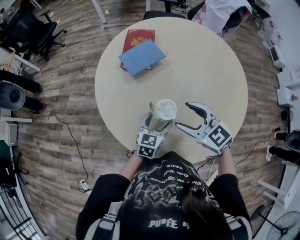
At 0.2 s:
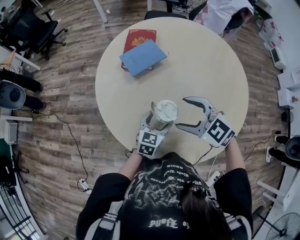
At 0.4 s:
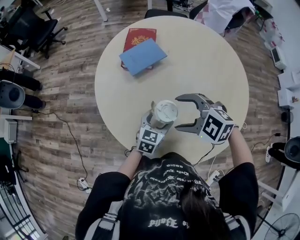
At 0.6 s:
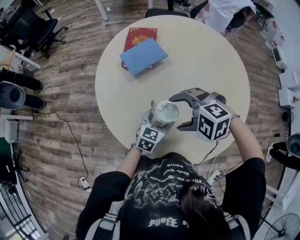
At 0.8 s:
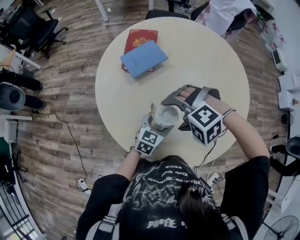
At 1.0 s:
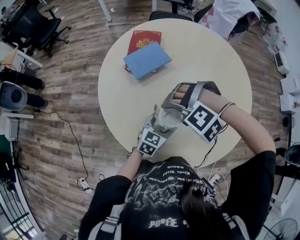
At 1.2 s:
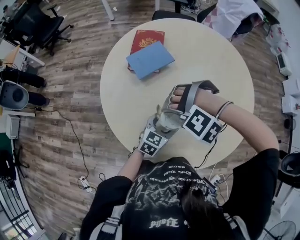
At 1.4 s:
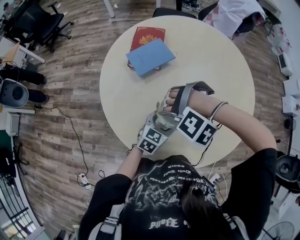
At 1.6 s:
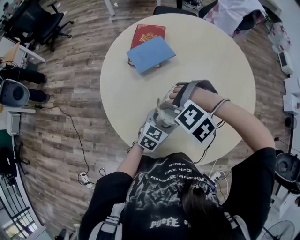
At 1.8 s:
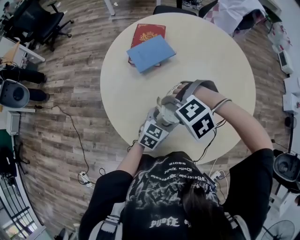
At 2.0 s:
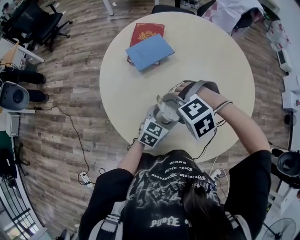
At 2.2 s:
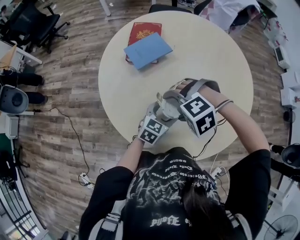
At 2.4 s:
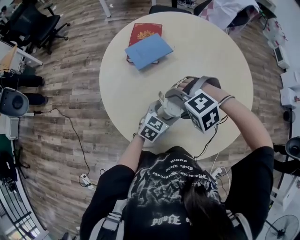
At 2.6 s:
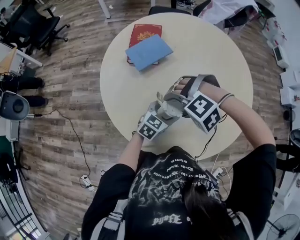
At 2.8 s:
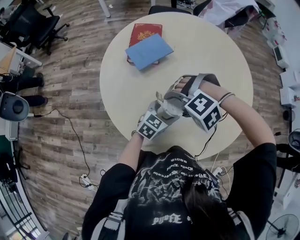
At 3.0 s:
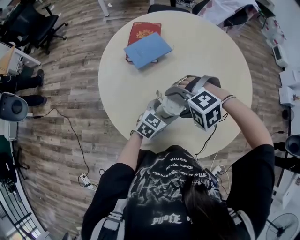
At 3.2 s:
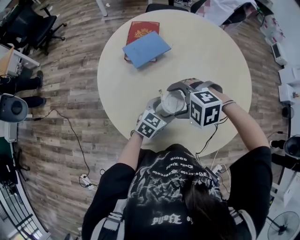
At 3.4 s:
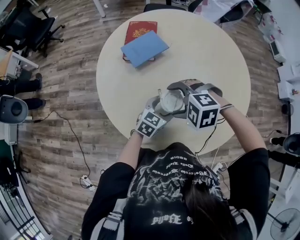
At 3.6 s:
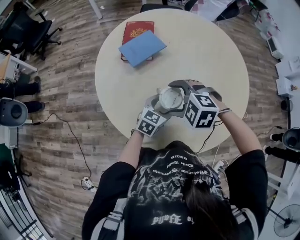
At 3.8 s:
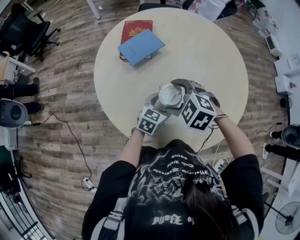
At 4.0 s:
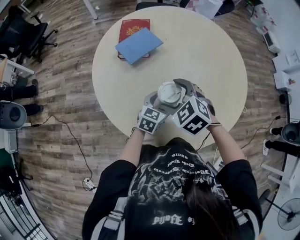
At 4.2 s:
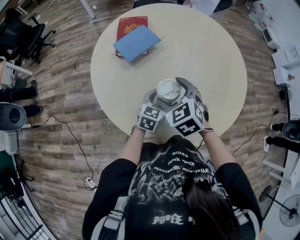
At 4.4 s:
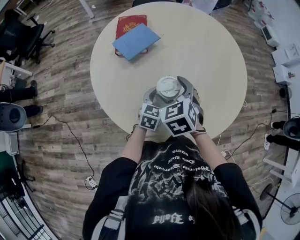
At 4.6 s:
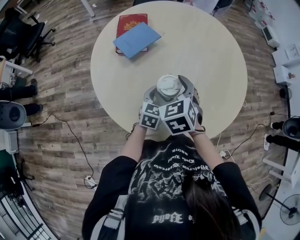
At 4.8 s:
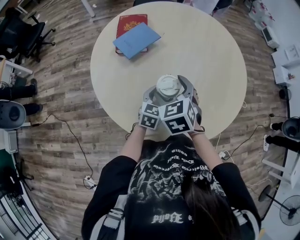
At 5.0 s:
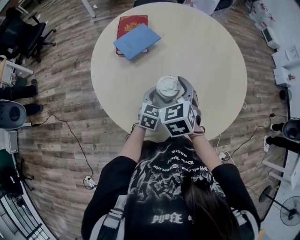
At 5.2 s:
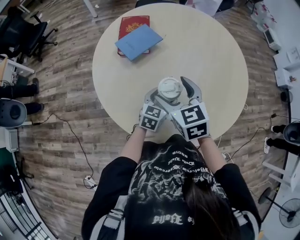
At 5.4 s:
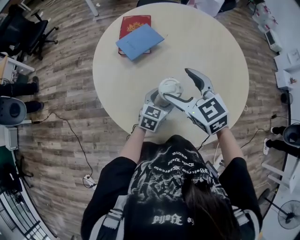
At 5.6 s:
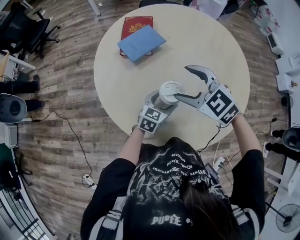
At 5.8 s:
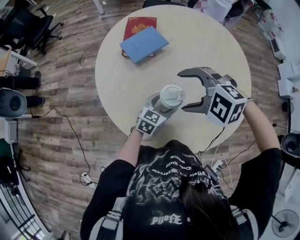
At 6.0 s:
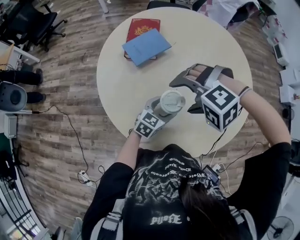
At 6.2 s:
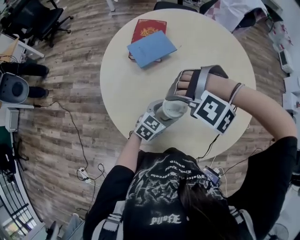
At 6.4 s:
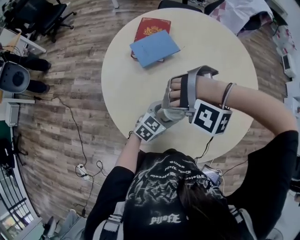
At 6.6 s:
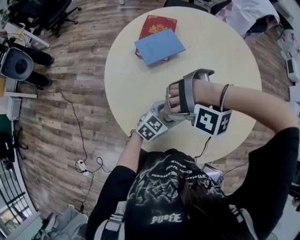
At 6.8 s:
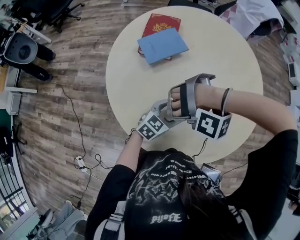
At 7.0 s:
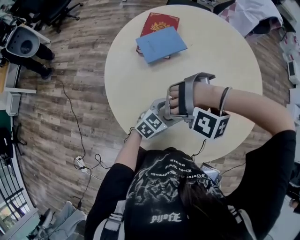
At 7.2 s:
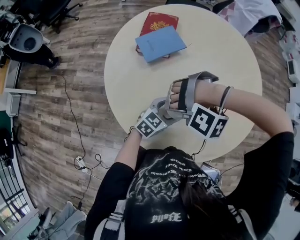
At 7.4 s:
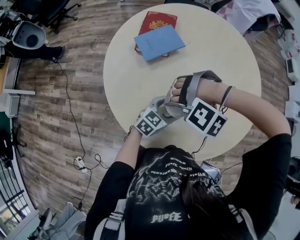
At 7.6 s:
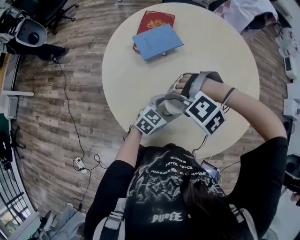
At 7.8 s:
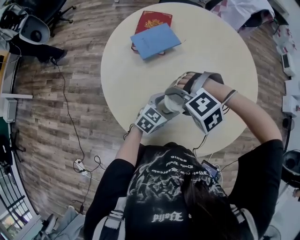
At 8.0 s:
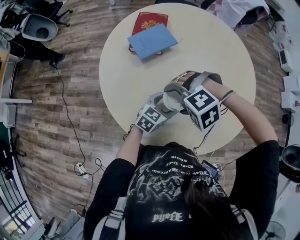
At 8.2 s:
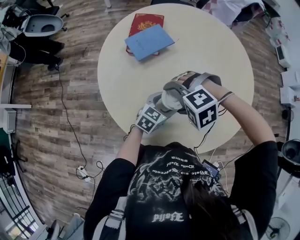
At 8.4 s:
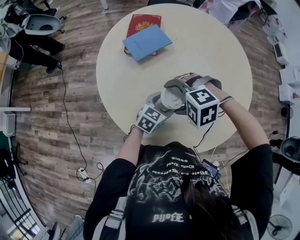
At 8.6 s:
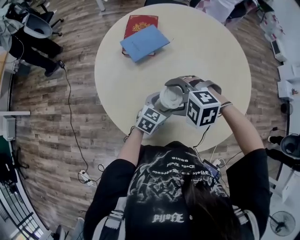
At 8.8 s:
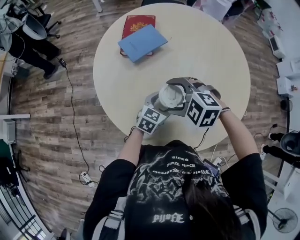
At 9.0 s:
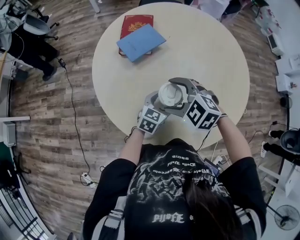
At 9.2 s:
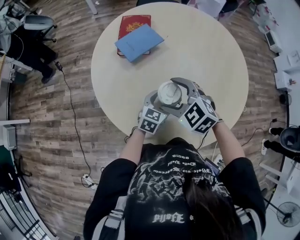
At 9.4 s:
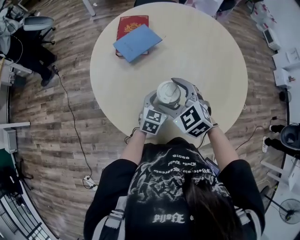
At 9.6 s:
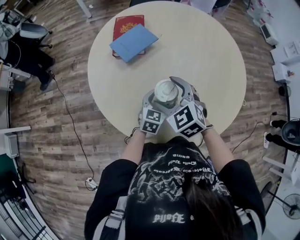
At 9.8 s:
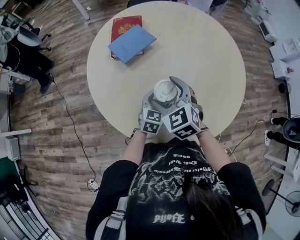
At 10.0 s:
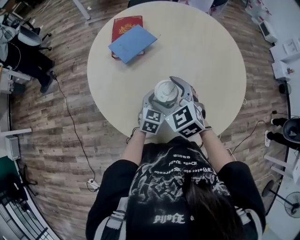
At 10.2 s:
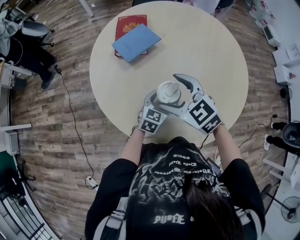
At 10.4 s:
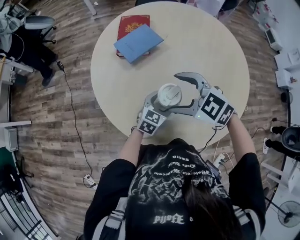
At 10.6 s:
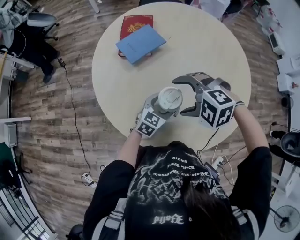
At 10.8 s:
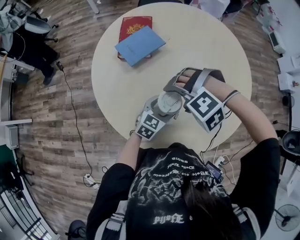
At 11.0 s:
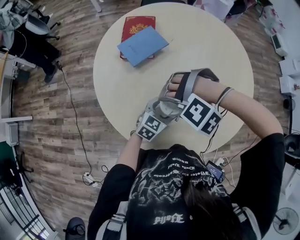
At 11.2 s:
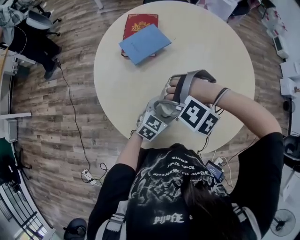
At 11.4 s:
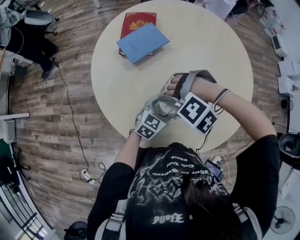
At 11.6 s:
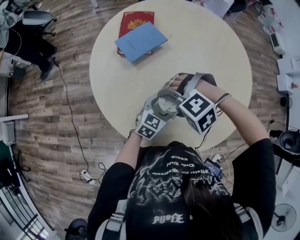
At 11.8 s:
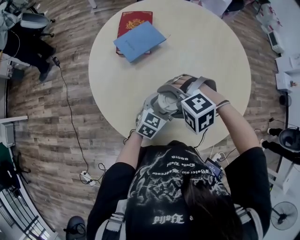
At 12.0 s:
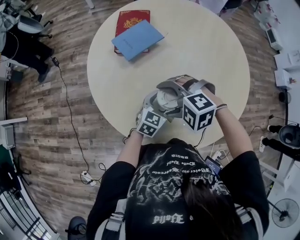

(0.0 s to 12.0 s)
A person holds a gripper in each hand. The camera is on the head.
0.0 s - 1.6 s: The right gripper moves about 5 cm, and tips its fingers downward by roughly 50 degrees.
1.6 s - 3.0 s: The right gripper rotates about 20 degrees.
3.0 s - 4.4 s: The right gripper twists some 80 degrees clockwise, seen from behind.
4.4 s - 6.0 s: The right gripper rolls counterclockwise, seen from behind, by some 80 degrees.
6.0 s - 7.6 s: The right gripper shifts about 5 cm downward, and changes its angle by about 20 degrees.
7.6 s - 9.0 s: The right gripper rotates around the line of its fingers by about 60 degrees, clockwise from behind.
10.4 s - 12.0 s: The right gripper is displaced downward by approximately 5 cm, and turns by approximately 40 degrees.

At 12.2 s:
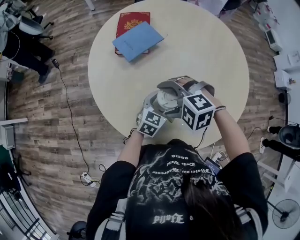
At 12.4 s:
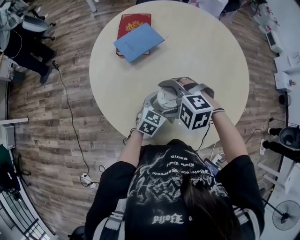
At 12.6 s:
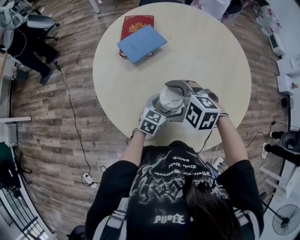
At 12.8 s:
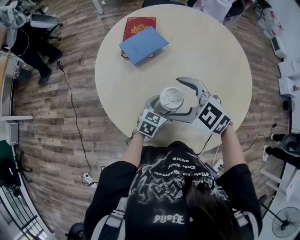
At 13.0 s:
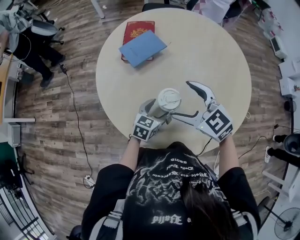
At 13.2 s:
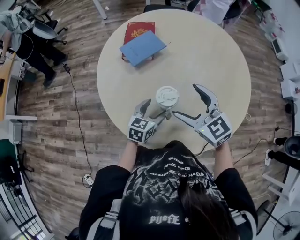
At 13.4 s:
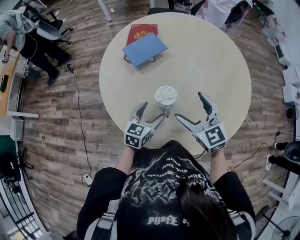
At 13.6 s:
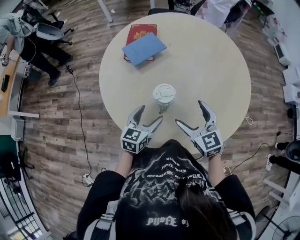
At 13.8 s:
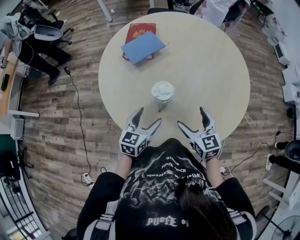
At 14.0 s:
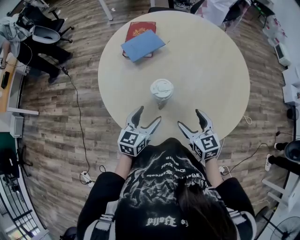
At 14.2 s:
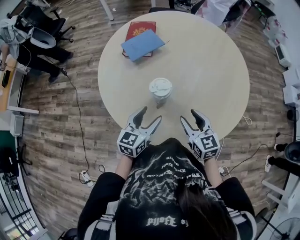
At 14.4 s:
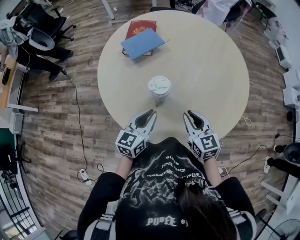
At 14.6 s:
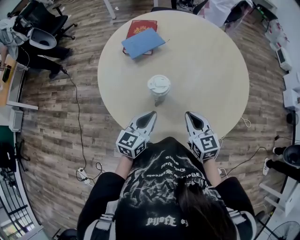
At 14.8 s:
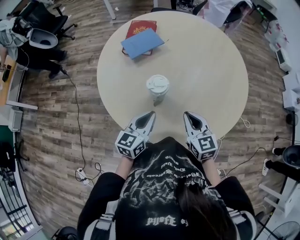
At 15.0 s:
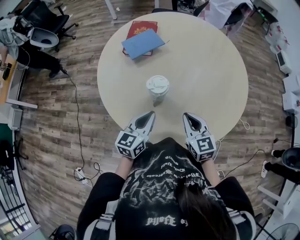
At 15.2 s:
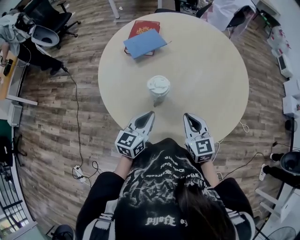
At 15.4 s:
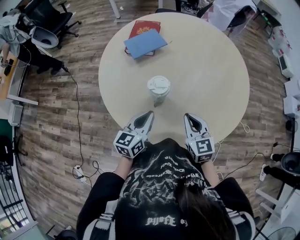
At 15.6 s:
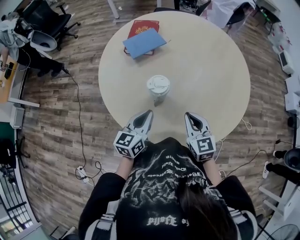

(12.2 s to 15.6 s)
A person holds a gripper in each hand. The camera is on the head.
12.2 s - 13.8 s: The left gripper heads backward, upward and to the left, covering some 15 cm; the right gripper moves to the right and backward, some 15 cm, and angles its fingers upward, by approximately 30 degrees.
13.8 s - 15.6 s: The left gripper closes up; the right gripper closes up.

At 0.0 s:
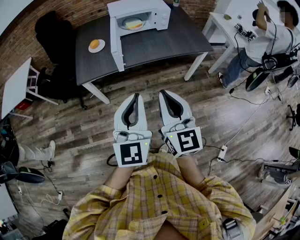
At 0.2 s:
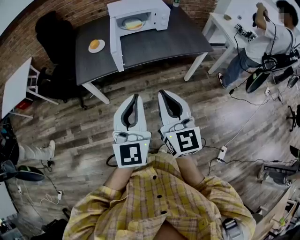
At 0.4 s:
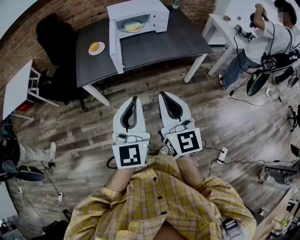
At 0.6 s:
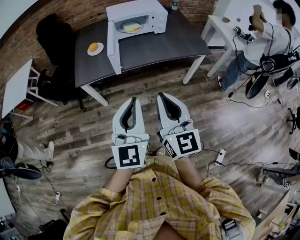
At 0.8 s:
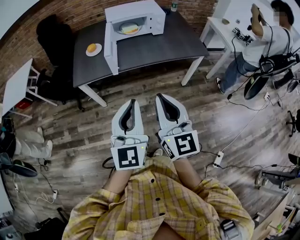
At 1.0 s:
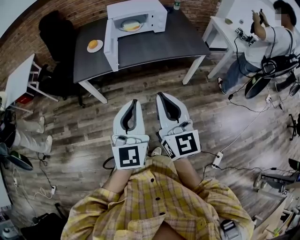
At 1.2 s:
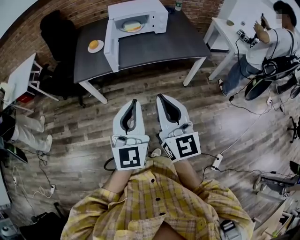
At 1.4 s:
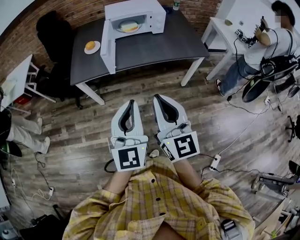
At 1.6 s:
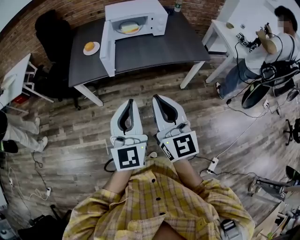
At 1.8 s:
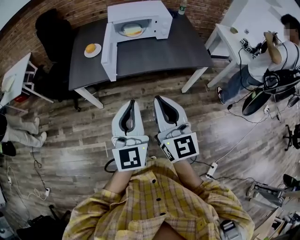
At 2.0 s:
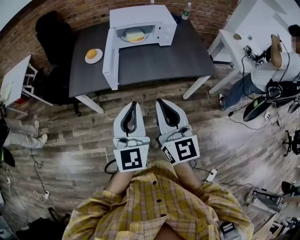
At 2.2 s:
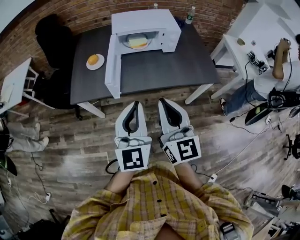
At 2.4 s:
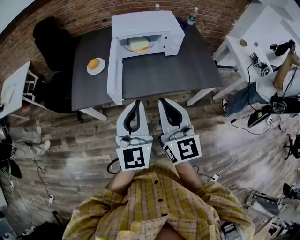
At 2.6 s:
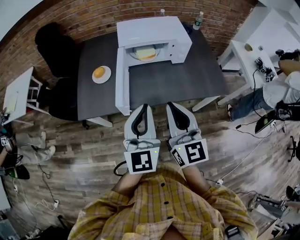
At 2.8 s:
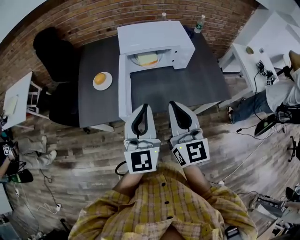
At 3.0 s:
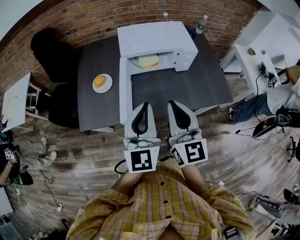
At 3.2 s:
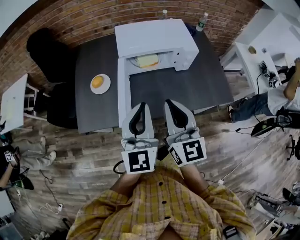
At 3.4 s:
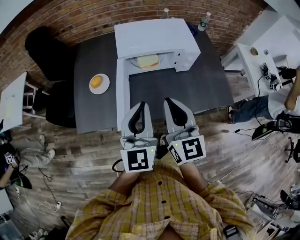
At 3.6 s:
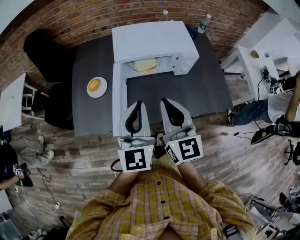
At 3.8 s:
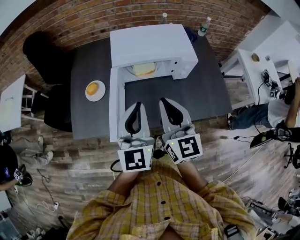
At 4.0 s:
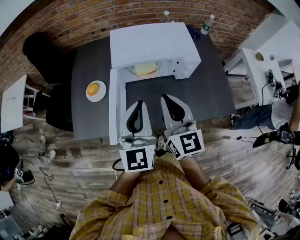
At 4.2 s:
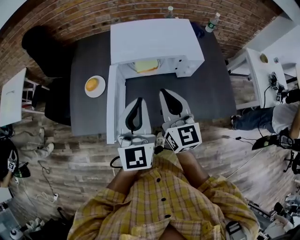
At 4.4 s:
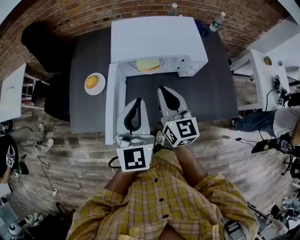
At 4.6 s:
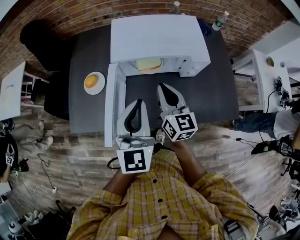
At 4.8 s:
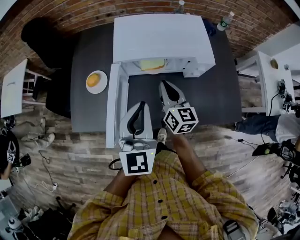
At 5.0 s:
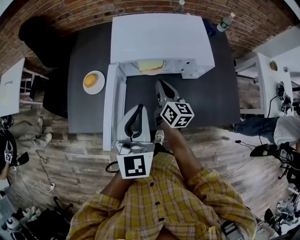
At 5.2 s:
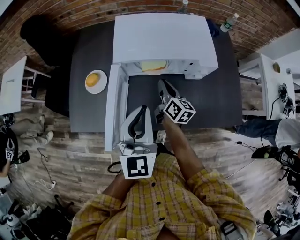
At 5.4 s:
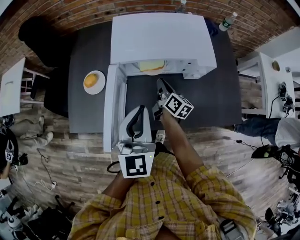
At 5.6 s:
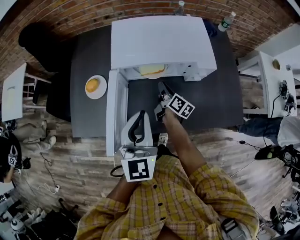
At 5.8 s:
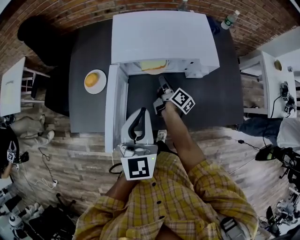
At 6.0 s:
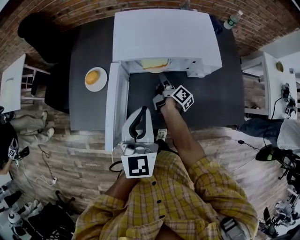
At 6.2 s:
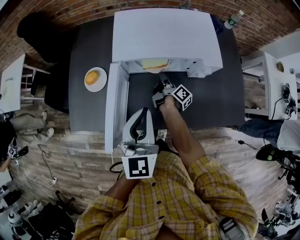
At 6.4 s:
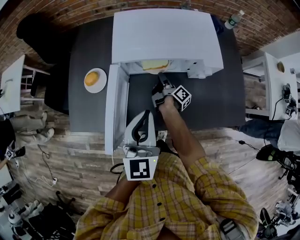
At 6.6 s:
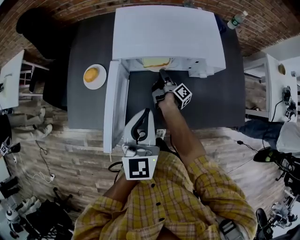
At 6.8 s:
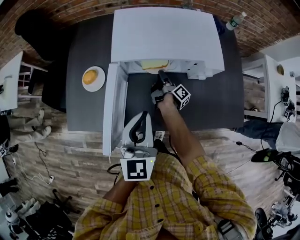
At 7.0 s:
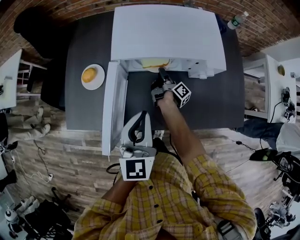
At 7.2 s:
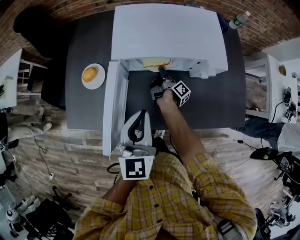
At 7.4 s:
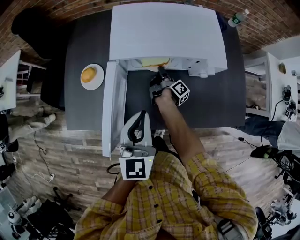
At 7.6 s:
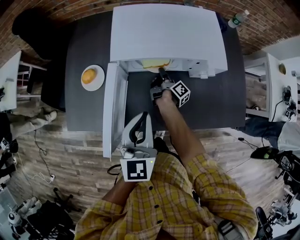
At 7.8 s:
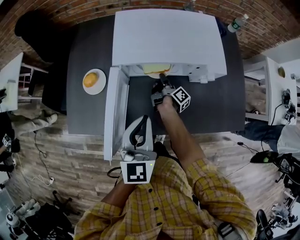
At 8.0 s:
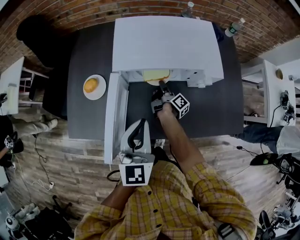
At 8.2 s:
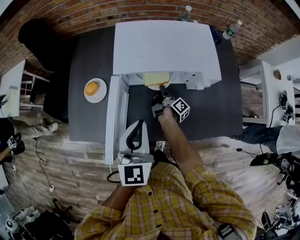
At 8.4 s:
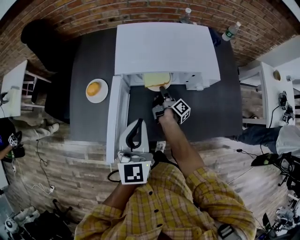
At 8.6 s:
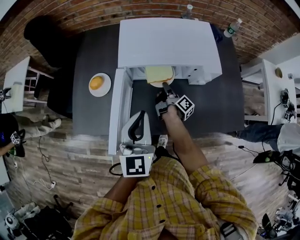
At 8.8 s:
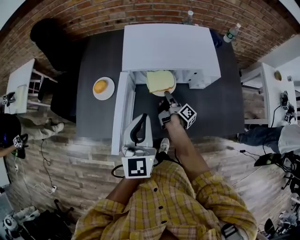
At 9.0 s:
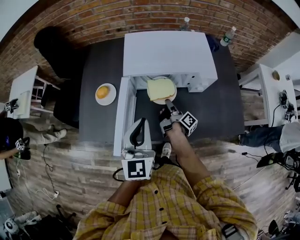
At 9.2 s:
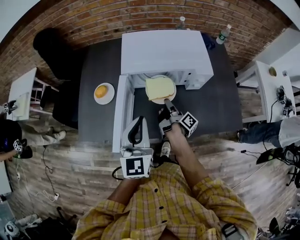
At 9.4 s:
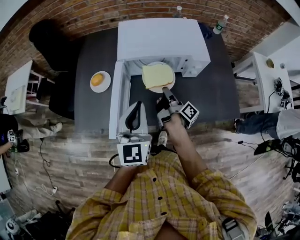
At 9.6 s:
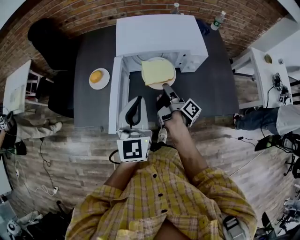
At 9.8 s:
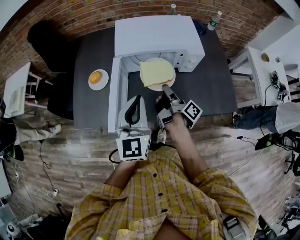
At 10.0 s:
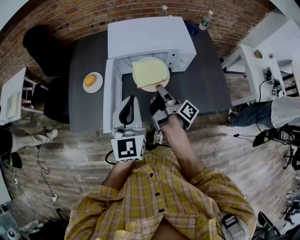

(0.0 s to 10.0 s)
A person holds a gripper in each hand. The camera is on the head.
0.0 s - 1.4 s: Both grippers move to the right, roughly 5 cm.
1.4 s - 2.8 s: The two grippers go some 35 cm forward.
2.8 s - 4.2 s: The grippers both shift forward by some 20 cm.
4.2 s - 5.8 s: The right gripper shifts some 30 cm downward and forward, and rolls clockwise, seen from behind, by approximately 70 degrees. Meanwhile the left gripper travels downward by some 5 cm.
5.8 s - 7.2 s: The right gripper moves downward, some 5 cm, and swivels roughly 30 degrees.
7.2 s - 8.6 s: The right gripper changes place by approximately 5 cm.
8.6 s - 10.0 s: The right gripper is displaced upward and backward by roughly 25 cm. The left gripper travels backward by roughly 5 cm.
